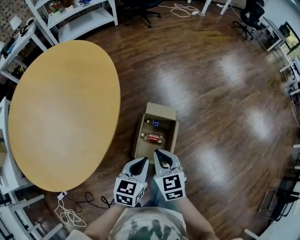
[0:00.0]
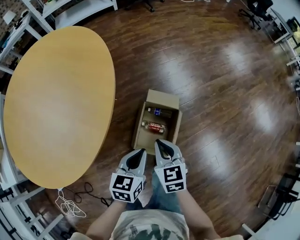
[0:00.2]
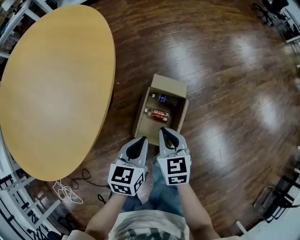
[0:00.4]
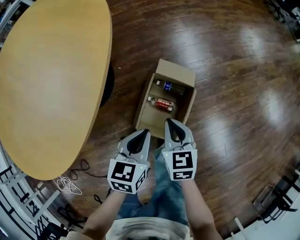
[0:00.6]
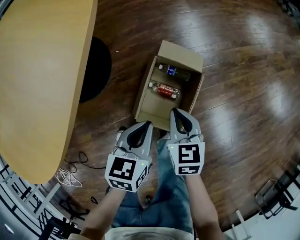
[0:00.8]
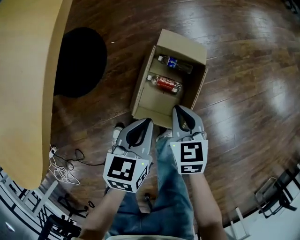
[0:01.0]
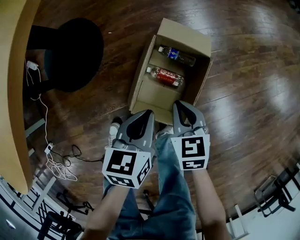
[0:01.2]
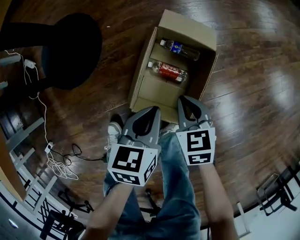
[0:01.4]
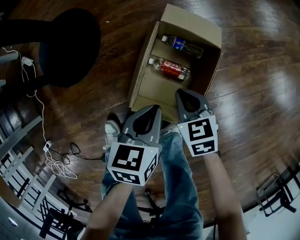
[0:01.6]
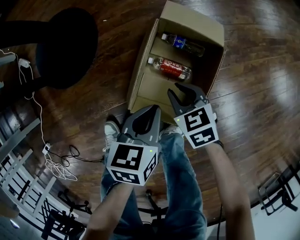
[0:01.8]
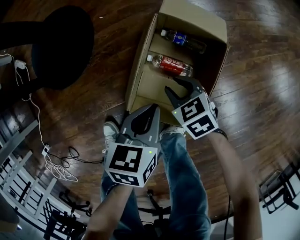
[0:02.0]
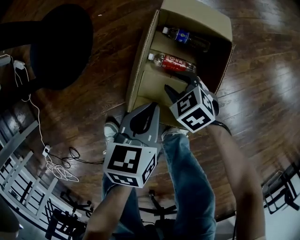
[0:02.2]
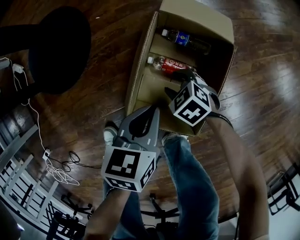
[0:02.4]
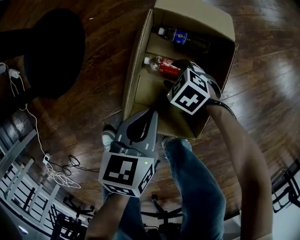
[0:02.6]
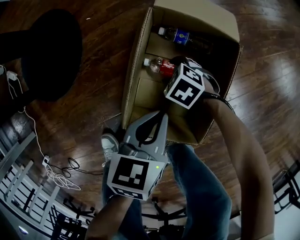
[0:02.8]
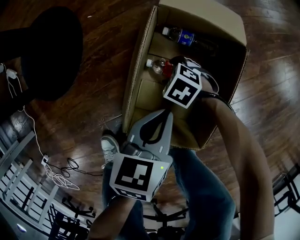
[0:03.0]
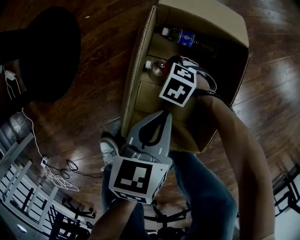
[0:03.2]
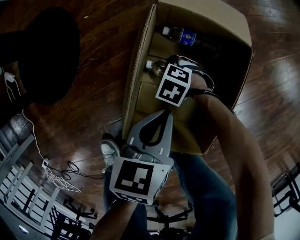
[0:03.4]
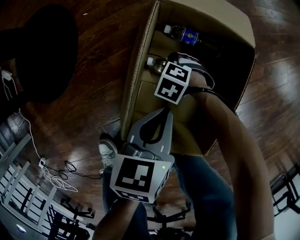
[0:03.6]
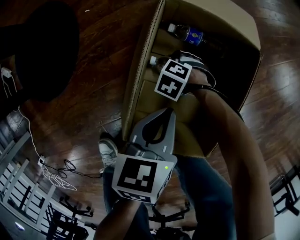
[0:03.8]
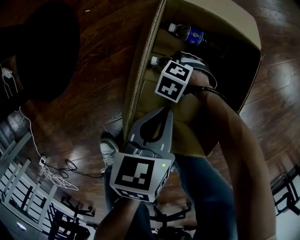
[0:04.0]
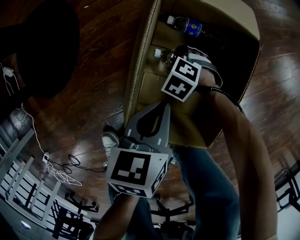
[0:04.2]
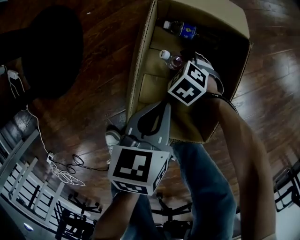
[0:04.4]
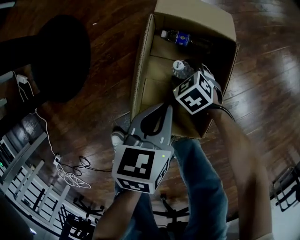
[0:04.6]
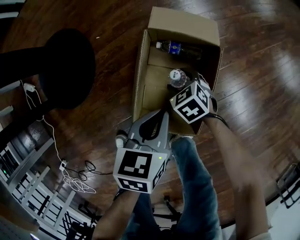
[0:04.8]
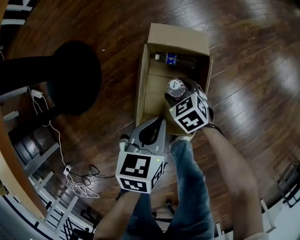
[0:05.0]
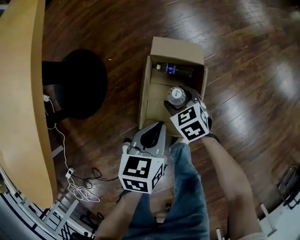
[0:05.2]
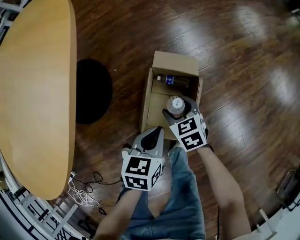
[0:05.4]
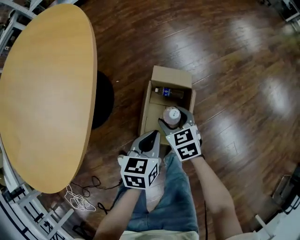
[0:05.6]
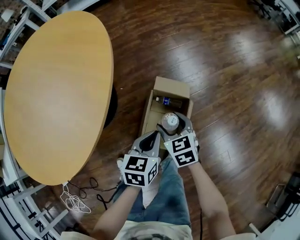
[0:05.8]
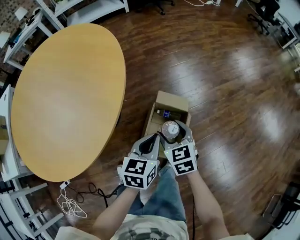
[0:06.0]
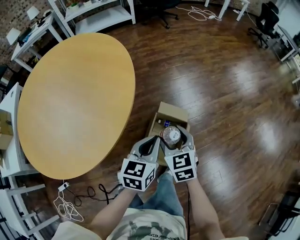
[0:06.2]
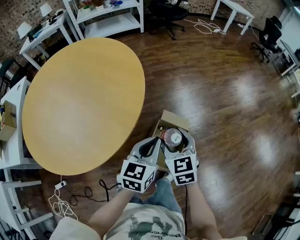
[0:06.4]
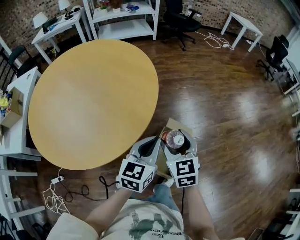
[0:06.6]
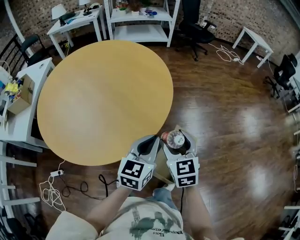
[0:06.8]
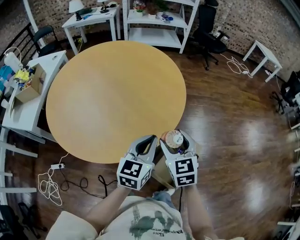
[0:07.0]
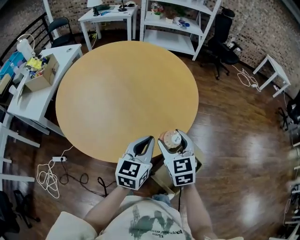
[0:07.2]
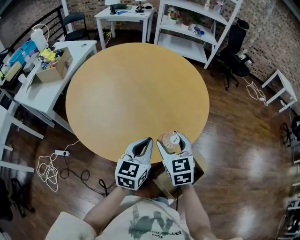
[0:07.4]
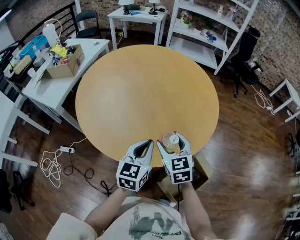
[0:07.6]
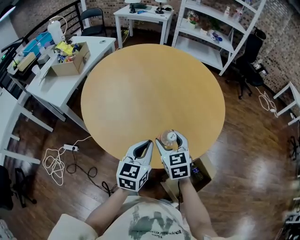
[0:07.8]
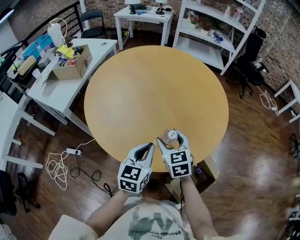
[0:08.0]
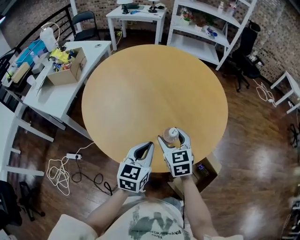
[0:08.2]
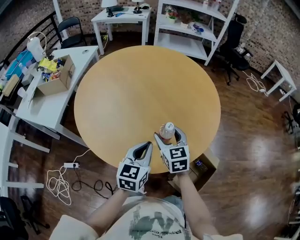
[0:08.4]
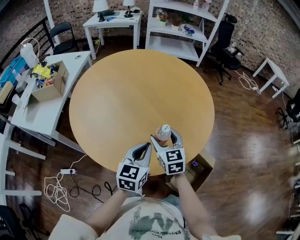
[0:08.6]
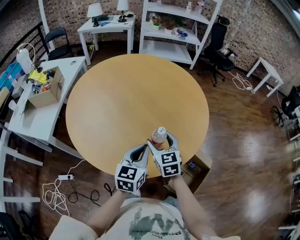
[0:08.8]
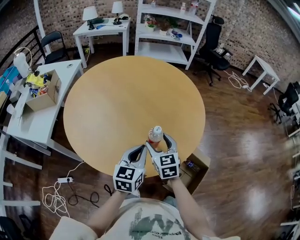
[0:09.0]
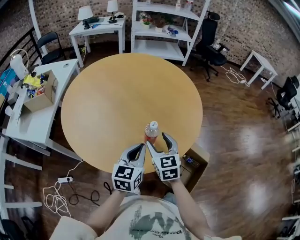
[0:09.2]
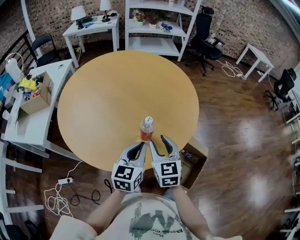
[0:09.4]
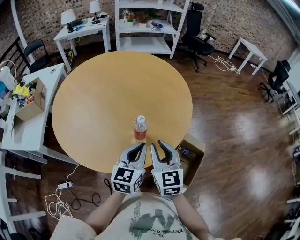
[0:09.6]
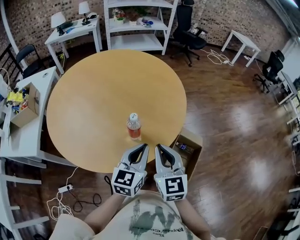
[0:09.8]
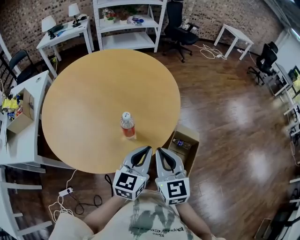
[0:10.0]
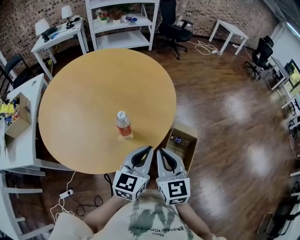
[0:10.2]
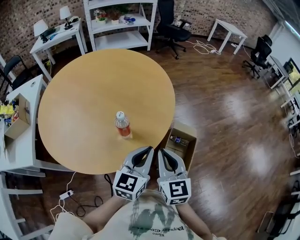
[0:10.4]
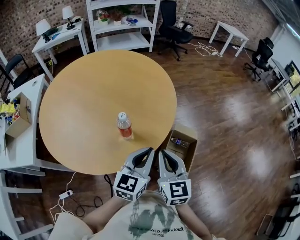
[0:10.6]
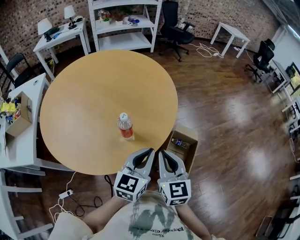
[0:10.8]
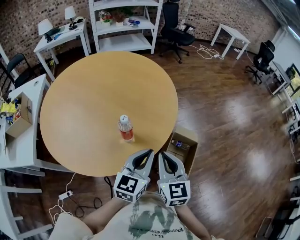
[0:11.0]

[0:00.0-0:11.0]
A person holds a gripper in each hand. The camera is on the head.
0:00.0 to 0:01.6: Both grippers travel together downward, some 40 cm. The right gripper swivels roughly 20 degrees. The left gripper turns by about 20 degrees.
0:01.6 to 0:03.2: The left gripper travels downward by about 15 cm. Meanwhile the right gripper goes approximately 30 cm downward, rotates approximately 50 degrees, and opens up.
0:03.2 to 0:04.8: The grippers both shift upward by some 15 cm. The right gripper turns by approximately 30 degrees.
0:04.8 to 0:06.2: The two grippers go roughly 50 cm upward. The right gripper angles its fingers upward, by some 30 degrees; the left gripper swivels roughly 30 degrees.
0:06.2 to 0:07.8: The right gripper changes place by about 40 cm, and swivels approximately 40 degrees. Meanwhile the left gripper shifts by approximately 40 cm, and rotates some 40 degrees.
0:07.8 to 0:09.4: The right gripper changes its angle by some 30 degrees, and closes.
0:09.4 to 0:11.0: The right gripper moves to the right and backward, about 10 cm, and closes, while the left gripper heads to the right, covering some 10 cm, and swivels some 20 degrees.

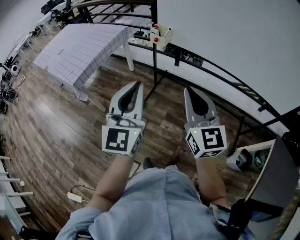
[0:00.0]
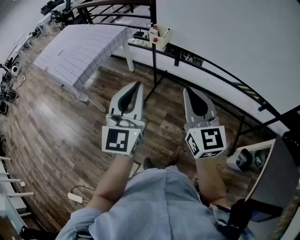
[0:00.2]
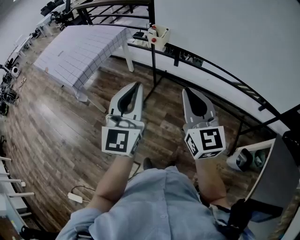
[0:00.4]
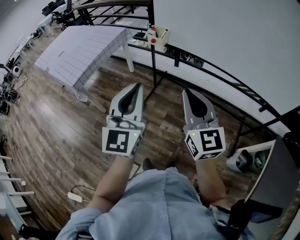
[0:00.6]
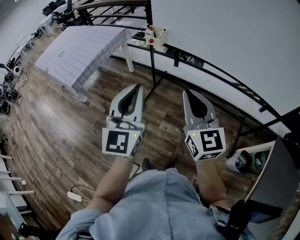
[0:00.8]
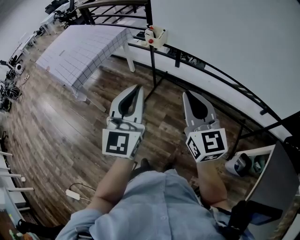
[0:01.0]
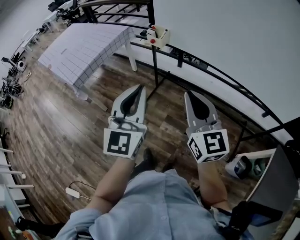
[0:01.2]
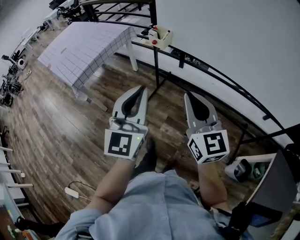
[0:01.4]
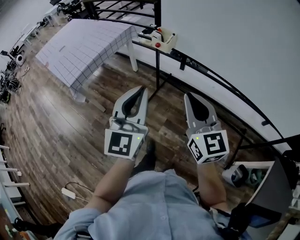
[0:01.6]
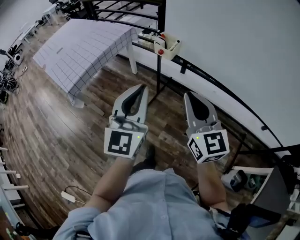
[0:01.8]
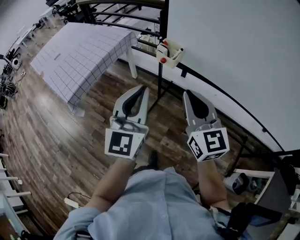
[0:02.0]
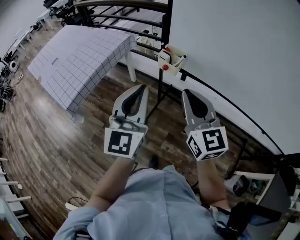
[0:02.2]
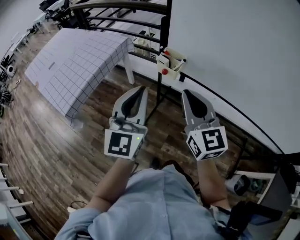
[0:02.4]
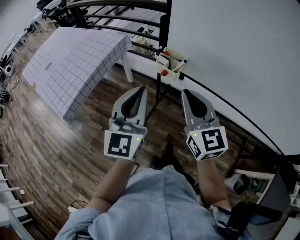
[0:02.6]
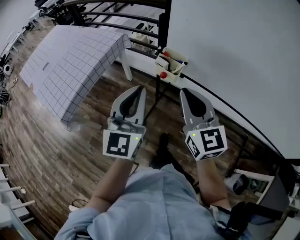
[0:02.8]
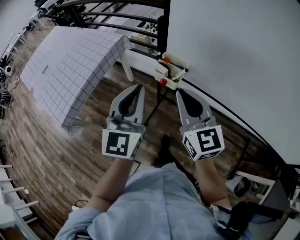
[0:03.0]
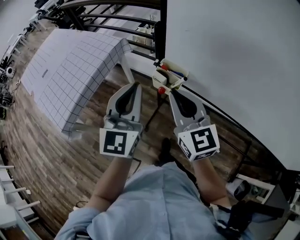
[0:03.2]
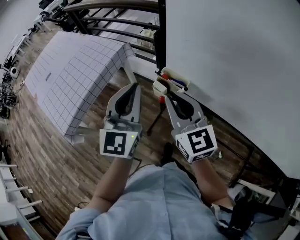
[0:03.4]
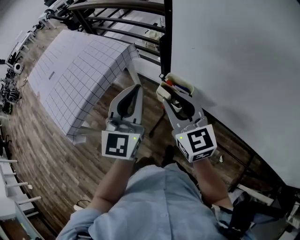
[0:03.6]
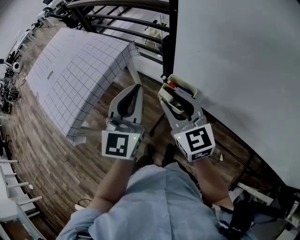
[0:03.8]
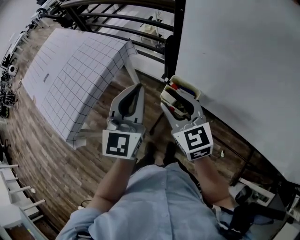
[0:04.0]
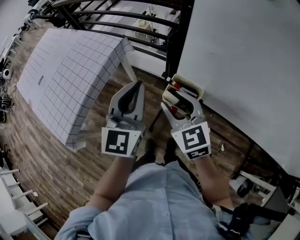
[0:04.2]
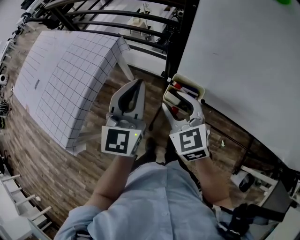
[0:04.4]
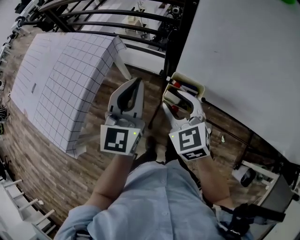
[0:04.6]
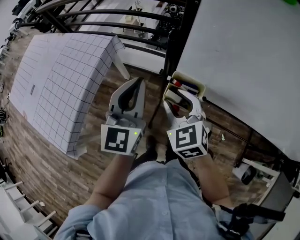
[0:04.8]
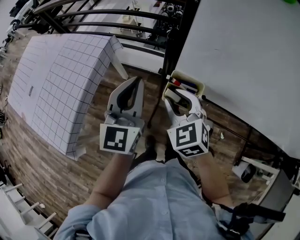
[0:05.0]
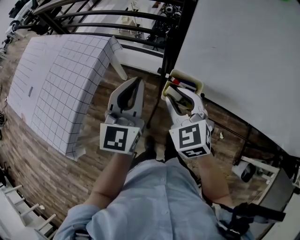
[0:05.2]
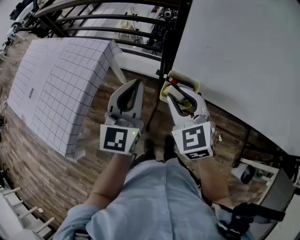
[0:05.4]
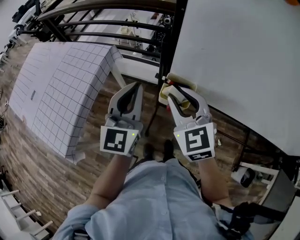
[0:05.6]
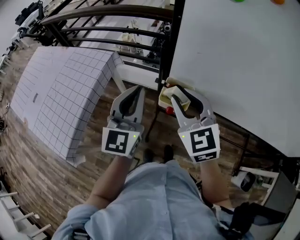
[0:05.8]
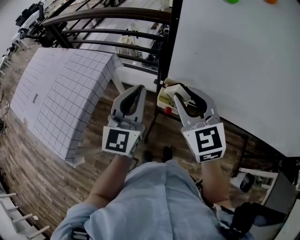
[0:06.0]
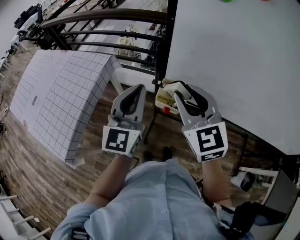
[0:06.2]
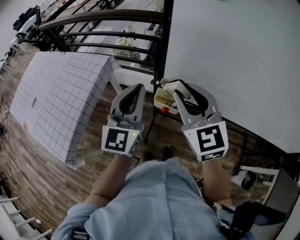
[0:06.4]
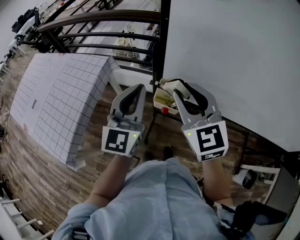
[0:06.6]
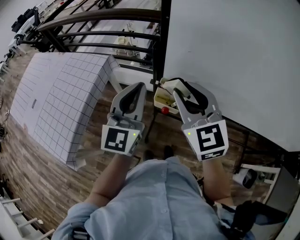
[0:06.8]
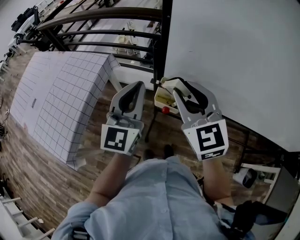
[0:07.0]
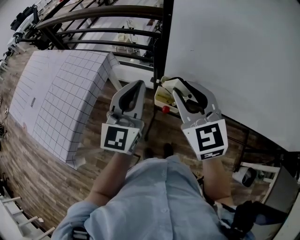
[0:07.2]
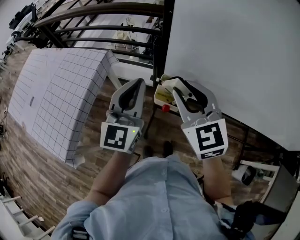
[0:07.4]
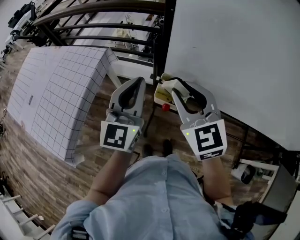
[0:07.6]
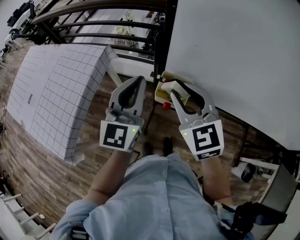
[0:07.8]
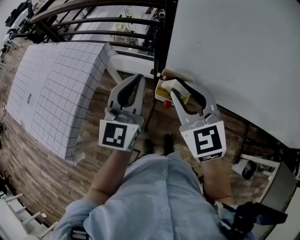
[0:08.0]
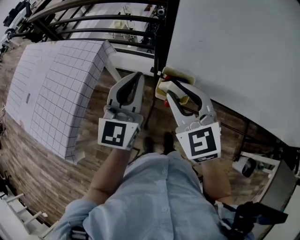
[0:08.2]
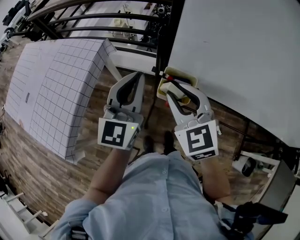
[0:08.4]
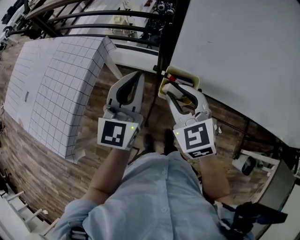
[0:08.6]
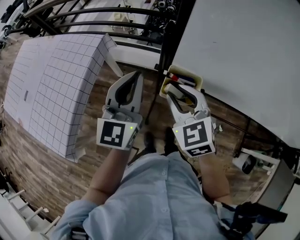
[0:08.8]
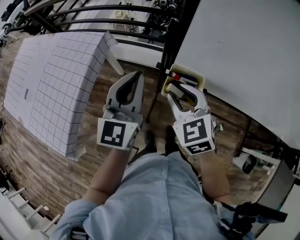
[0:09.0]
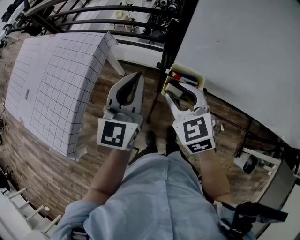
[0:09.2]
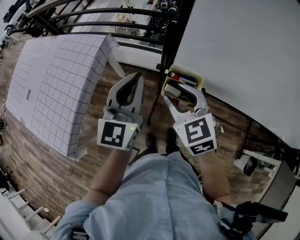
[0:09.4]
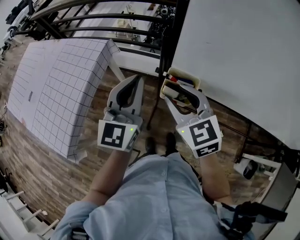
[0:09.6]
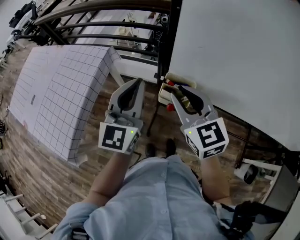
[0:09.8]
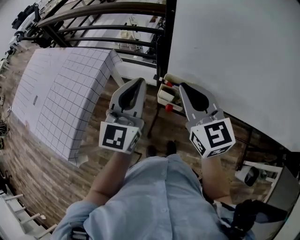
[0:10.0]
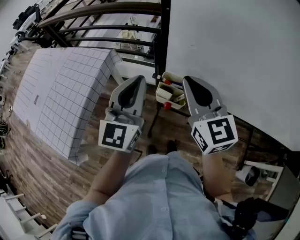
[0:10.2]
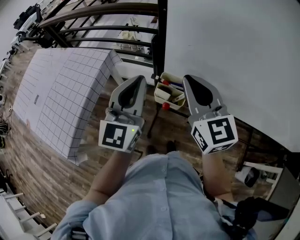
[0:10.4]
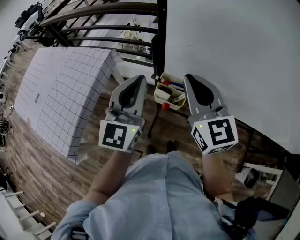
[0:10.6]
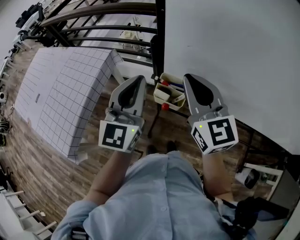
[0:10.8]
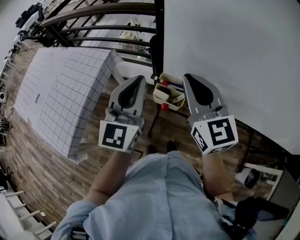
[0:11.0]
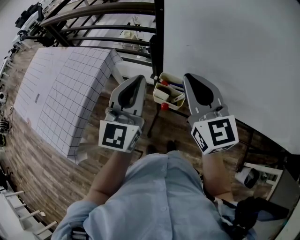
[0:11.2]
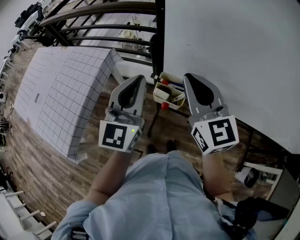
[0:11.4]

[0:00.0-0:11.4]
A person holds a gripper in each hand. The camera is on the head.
0:00.0 to 0:01.4: The left gripper goes approximately 5 cm to the right, while the right gripper shifts by some 5 cm.
0:01.4 to 0:02.8: Both grippers travel together forward, about 30 cm.
0:02.8 to 0:04.2: The right gripper travels forward and downward by roughly 20 cm, swivels approximately 20 degrees, and opens up. The left gripper is displaced forward by approximately 20 cm.
0:04.2 to 0:05.6: The right gripper shifts about 5 cm upward.
0:05.6 to 0:07.2: The right gripper shifts some 5 cm upward.
0:07.2 to 0:08.6: The left gripper changes place by approximately 5 cm. Meanwhile the right gripper shifts approximately 10 cm downward.
0:08.6 to 0:10.0: The right gripper is displaced upward by roughly 10 cm, rotates roughly 20 degrees, and closes, while the left gripper changes place by approximately 5 cm.
0:10.0 to 0:11.4: There are only small adjustments of the grippers.

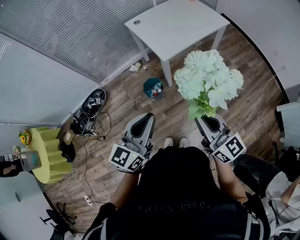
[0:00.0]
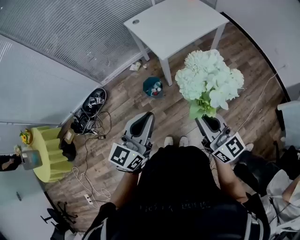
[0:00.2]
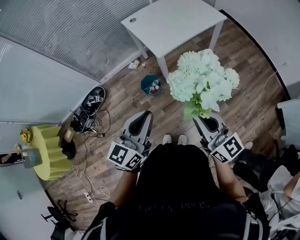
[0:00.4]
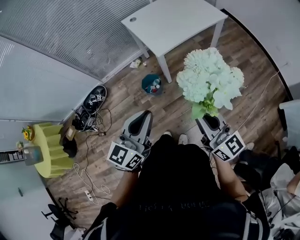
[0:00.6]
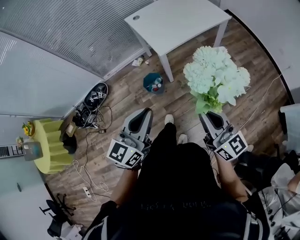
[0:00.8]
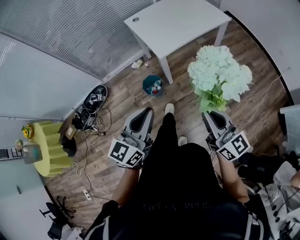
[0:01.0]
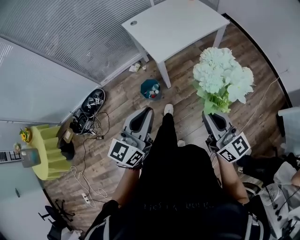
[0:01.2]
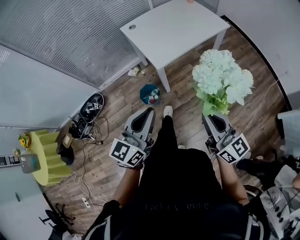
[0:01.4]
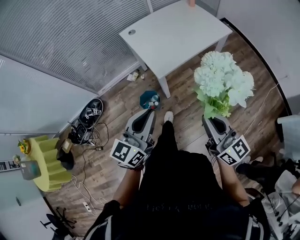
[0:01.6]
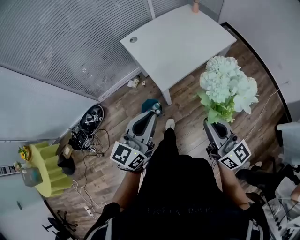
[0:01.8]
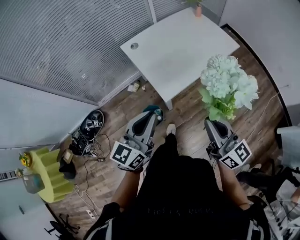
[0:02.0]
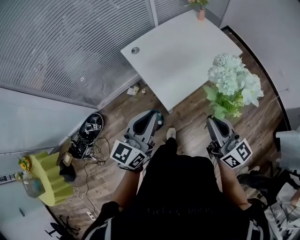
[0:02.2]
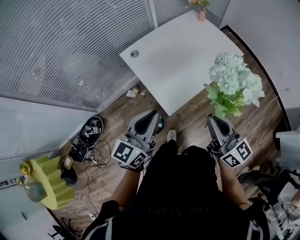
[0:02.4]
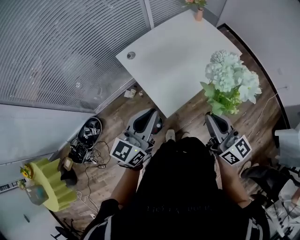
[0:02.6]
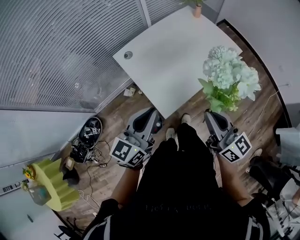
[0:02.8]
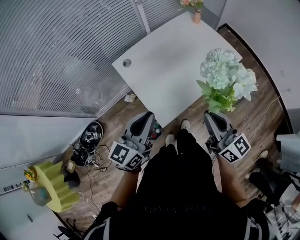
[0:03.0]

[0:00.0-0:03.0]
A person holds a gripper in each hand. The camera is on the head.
0:00.0 to 0:01.6: The left gripper is displaced forward by some 15 cm. The right gripper shifts approximately 15 cm forward and to the right.
0:01.6 to 0:03.0: The two grippers go some 30 cm forward.
